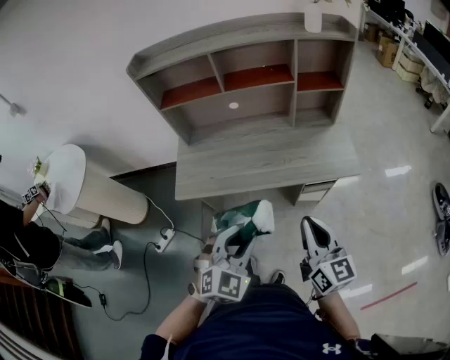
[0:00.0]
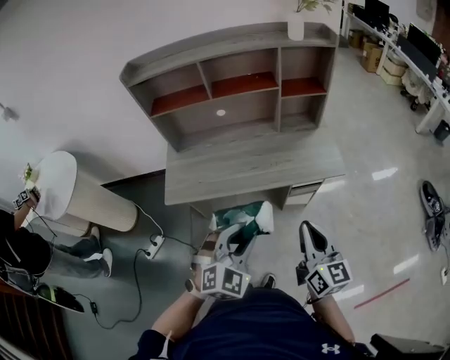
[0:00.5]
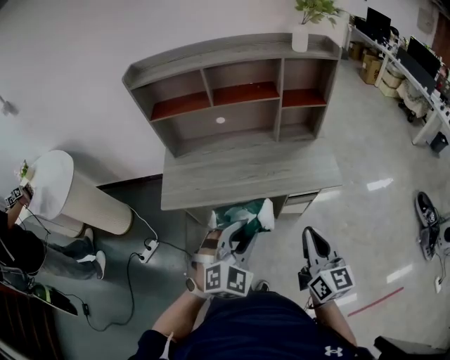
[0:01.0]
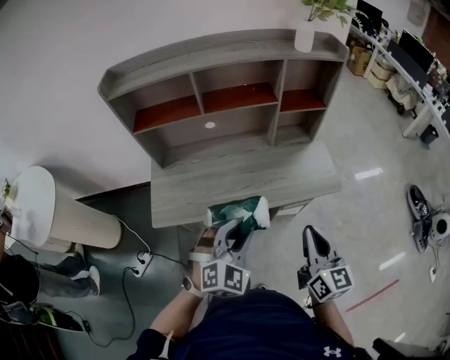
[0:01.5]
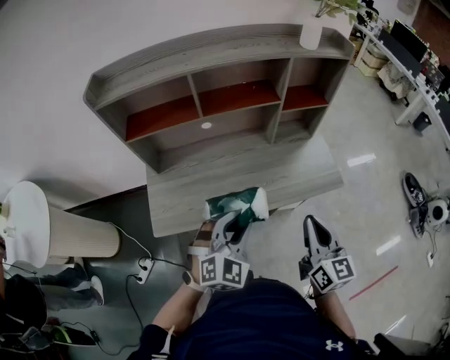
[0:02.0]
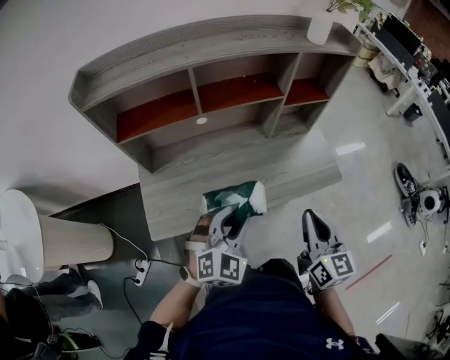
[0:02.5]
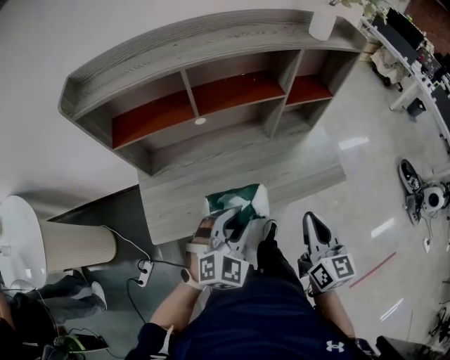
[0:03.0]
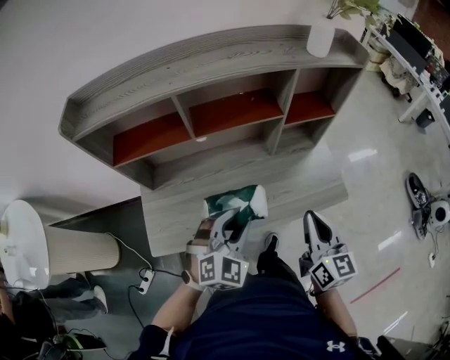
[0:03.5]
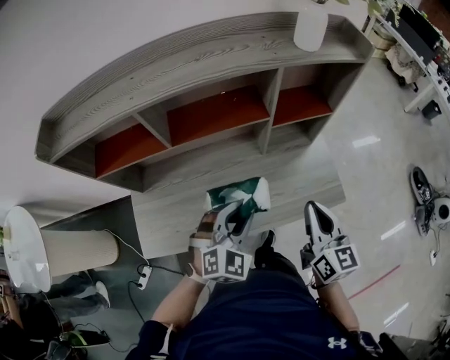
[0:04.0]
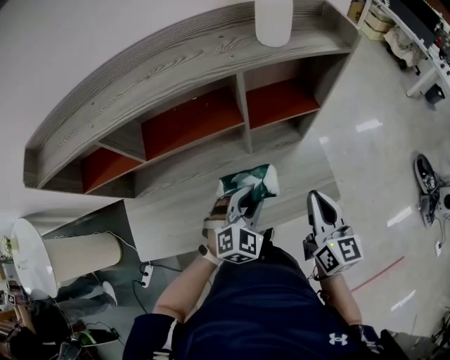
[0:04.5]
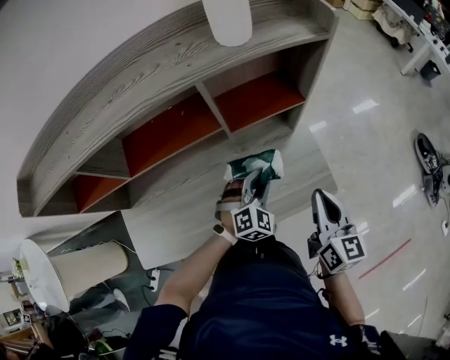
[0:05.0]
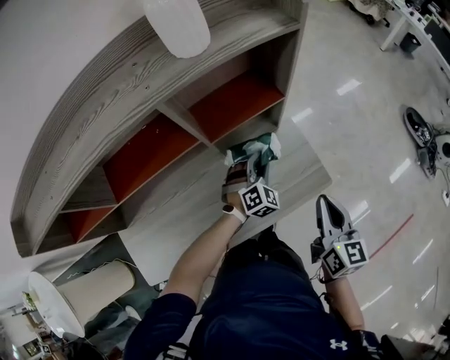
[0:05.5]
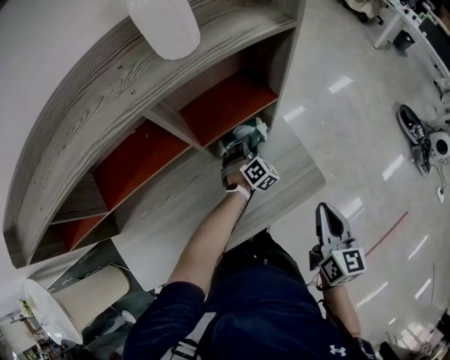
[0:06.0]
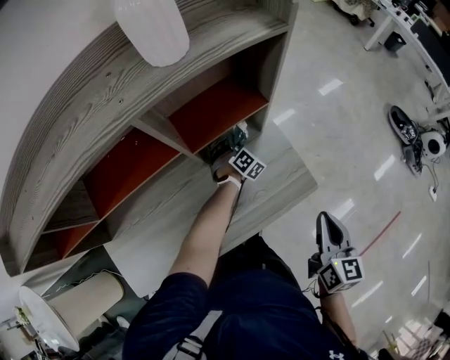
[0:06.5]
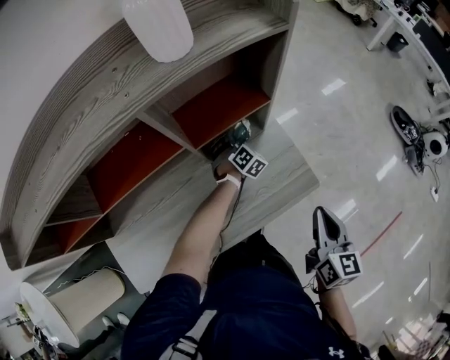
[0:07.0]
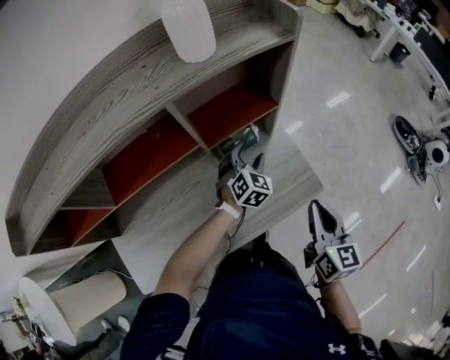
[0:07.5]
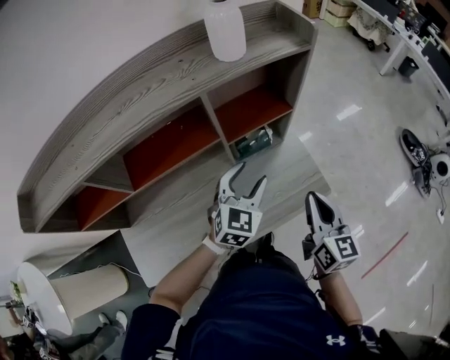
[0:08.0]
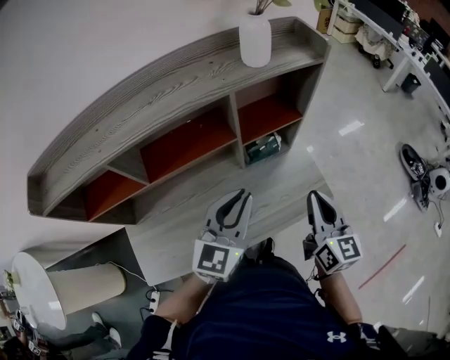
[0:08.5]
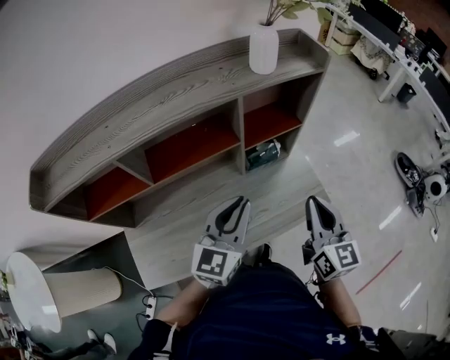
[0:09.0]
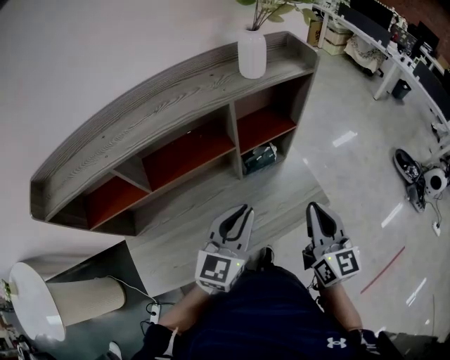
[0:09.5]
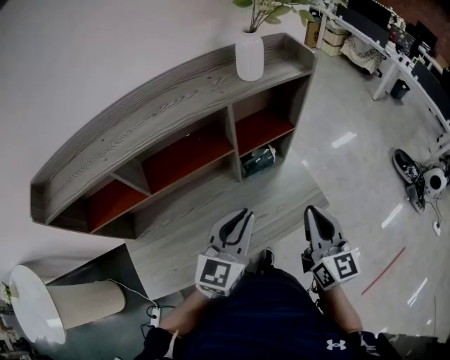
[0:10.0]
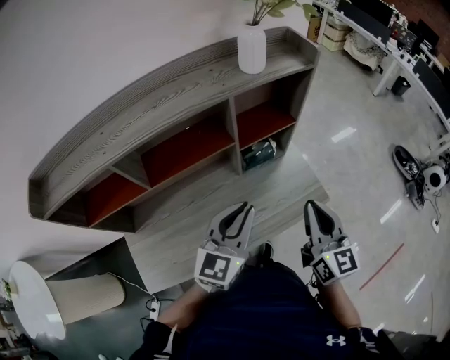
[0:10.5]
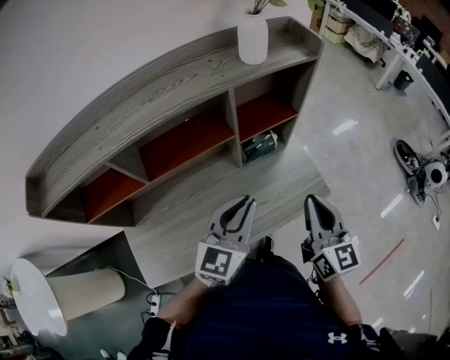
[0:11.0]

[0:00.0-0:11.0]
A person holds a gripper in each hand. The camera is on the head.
0:00.0 to 0:02.0: The two grippers go some 15 cm forward.
0:02.0 to 0:03.5: Both grippers travel together forward, approximately 10 cm.
0:03.5 to 0:05.5: The right gripper travels to the right and forward by some 25 cm, and swivels approximately 20 degrees, while the left gripper moves forward, to the right and downward, about 40 cm.
0:05.5 to 0:07.5: The left gripper goes downward and returns, roughly 10 cm each way, and opens.
0:07.5 to 0:09.0: The left gripper heads upward, backward and to the left, covering some 35 cm, angles its fingers upward, by some 30 degrees, and closes up; the right gripper travels upward and to the left by roughly 15 cm.
0:09.0 to 0:11.0: There are only small adjustments of the grippers.

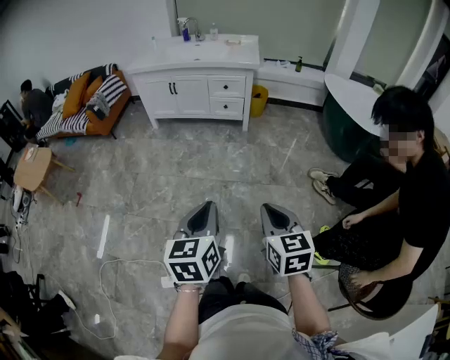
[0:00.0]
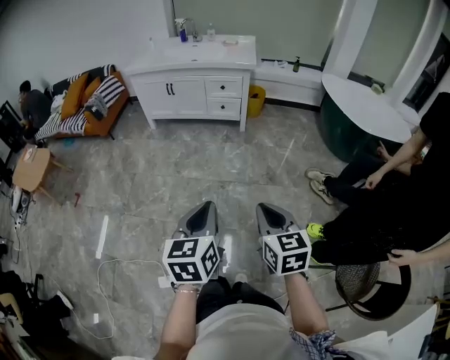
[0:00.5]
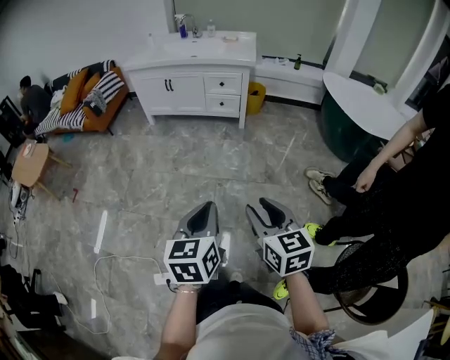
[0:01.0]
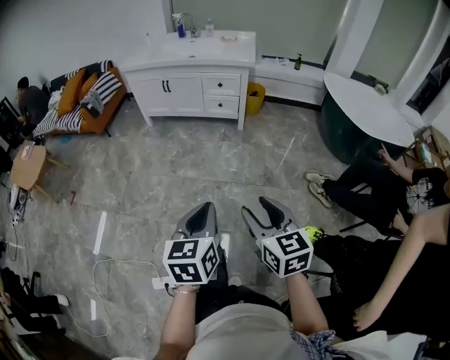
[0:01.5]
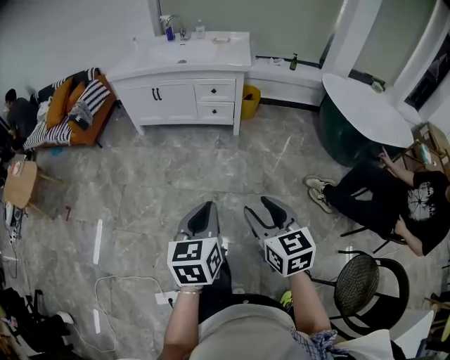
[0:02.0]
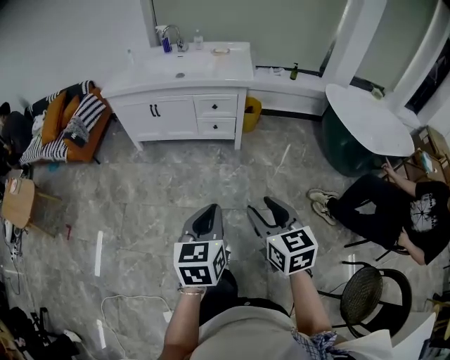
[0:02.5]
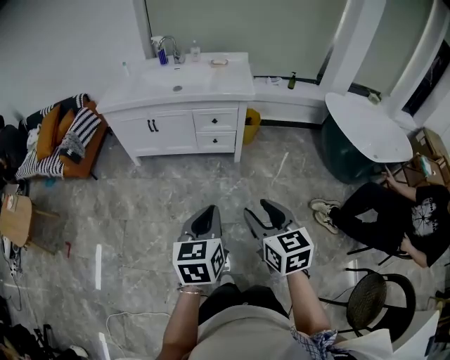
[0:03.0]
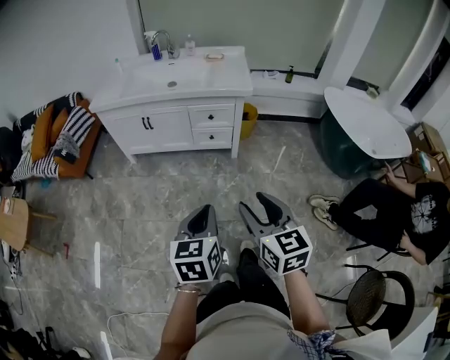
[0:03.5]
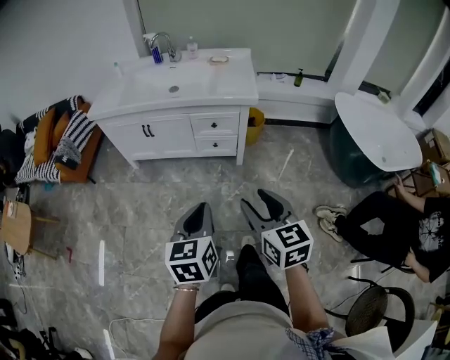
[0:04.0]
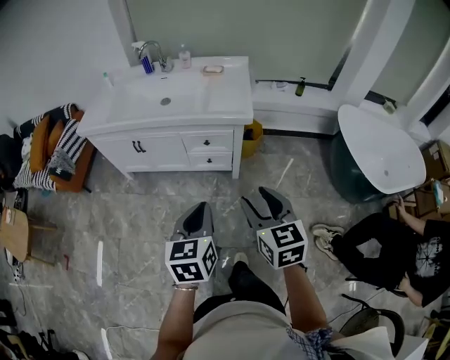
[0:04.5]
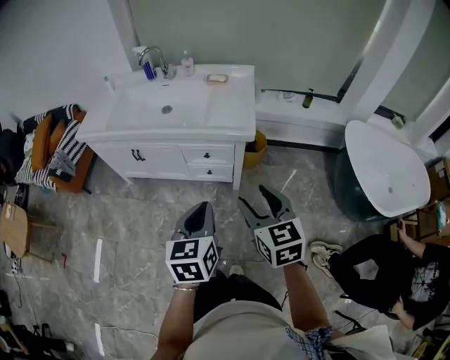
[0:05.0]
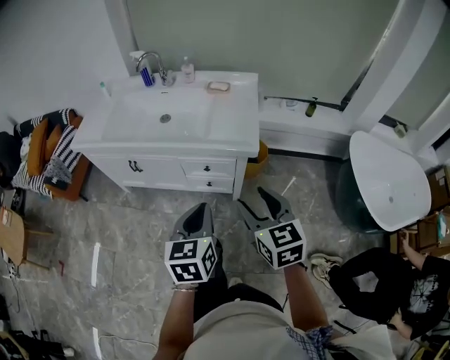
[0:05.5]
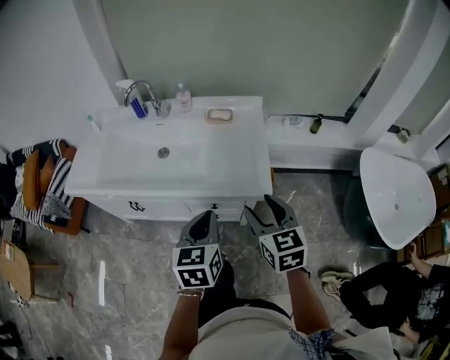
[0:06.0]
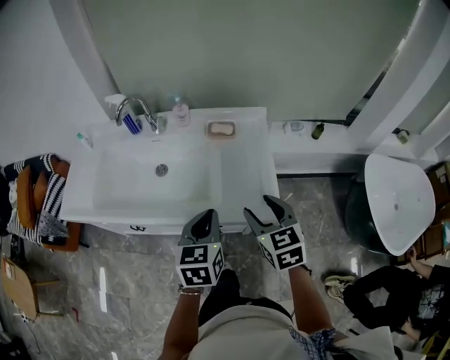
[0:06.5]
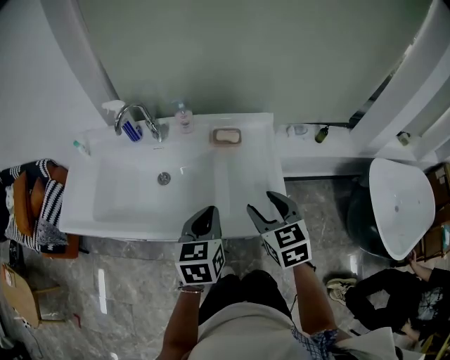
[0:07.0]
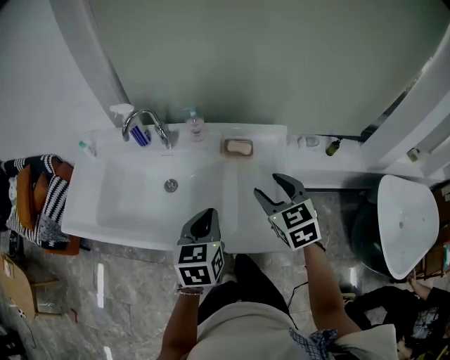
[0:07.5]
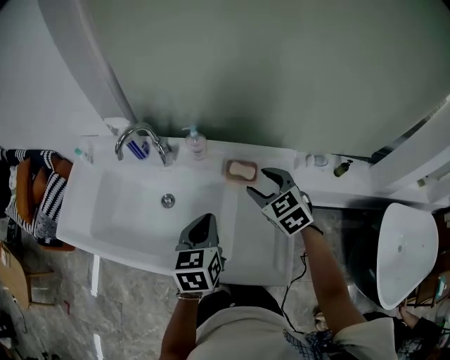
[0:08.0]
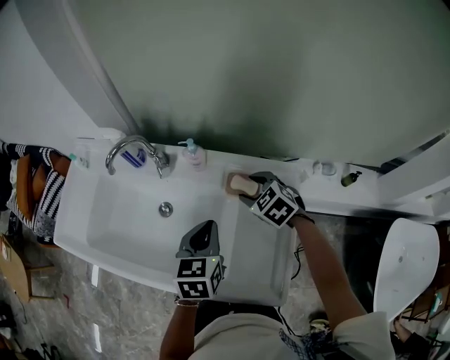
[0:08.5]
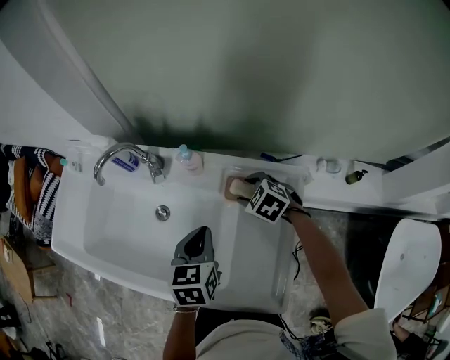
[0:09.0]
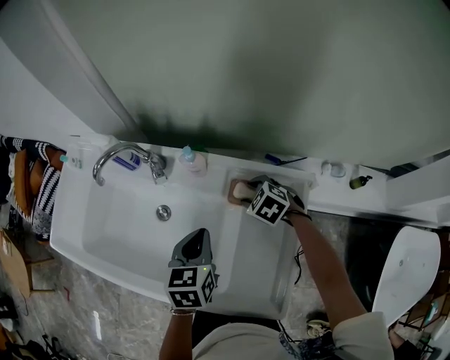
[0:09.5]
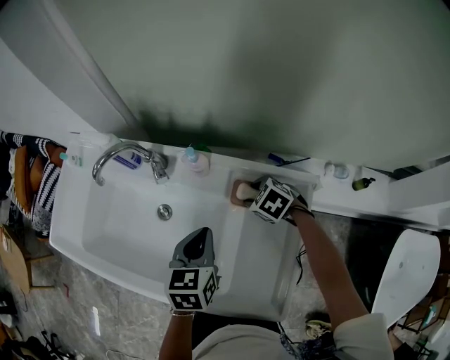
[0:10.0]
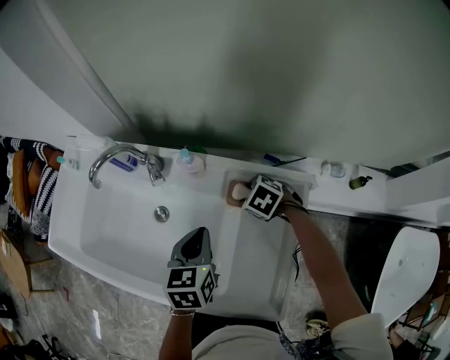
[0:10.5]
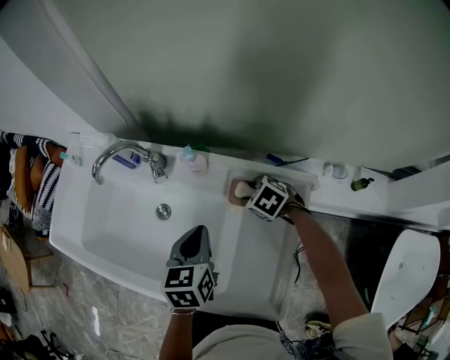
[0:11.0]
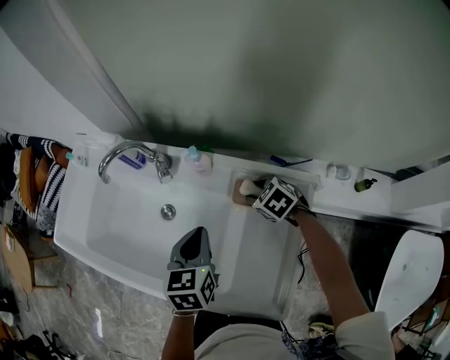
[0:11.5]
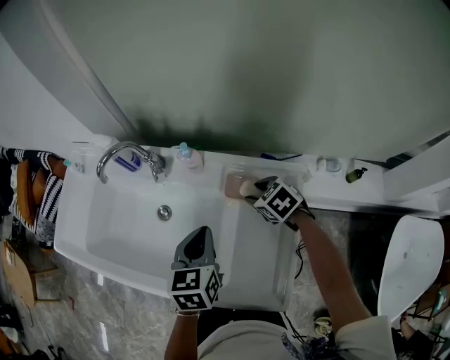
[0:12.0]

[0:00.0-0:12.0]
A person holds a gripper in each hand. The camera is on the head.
0:00.0 to 0:02.0: The grippers both shift forward by approximately 15 cm. The right gripper opens up.
0:02.0 to 0:04.0: Both grippers travel together forward, some 30 cm.
0:04.0 to 0:06.0: Both grippers are carried forward, roughly 50 cm.
0:06.0 to 0:08.0: The grippers both shift forward by roughly 35 cm. The right gripper turns by about 30 degrees.
0:08.0 to 0:10.0: The left gripper travels forward and downward by some 10 cm. Meanwhile the right gripper shifts about 20 cm downward and forward, and rotates approximately 40 degrees.
0:10.0 to 0:12.0: The right gripper moves some 5 cm.

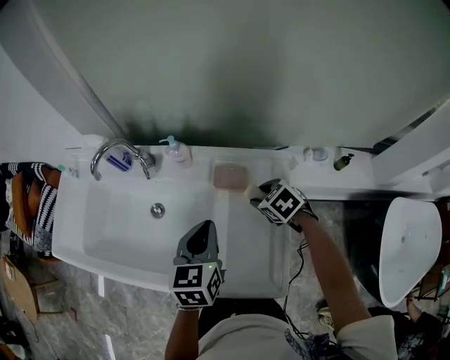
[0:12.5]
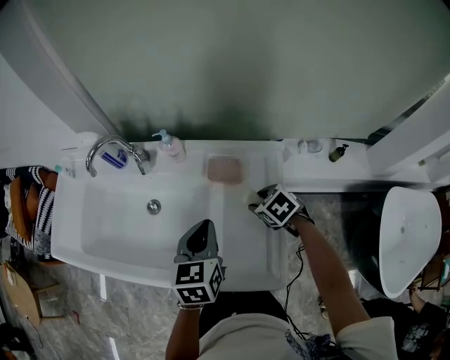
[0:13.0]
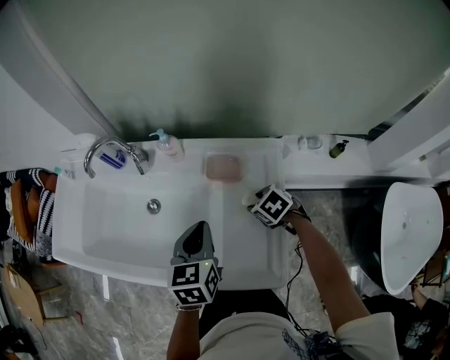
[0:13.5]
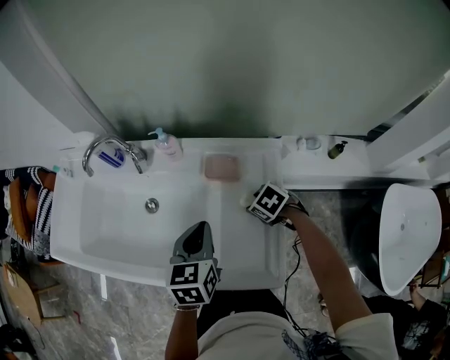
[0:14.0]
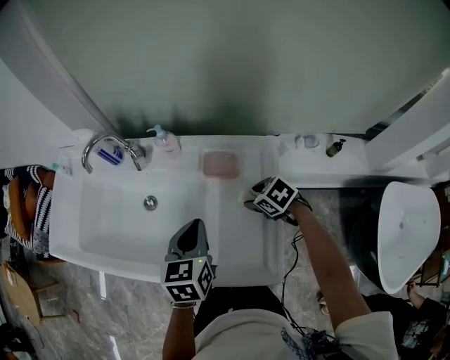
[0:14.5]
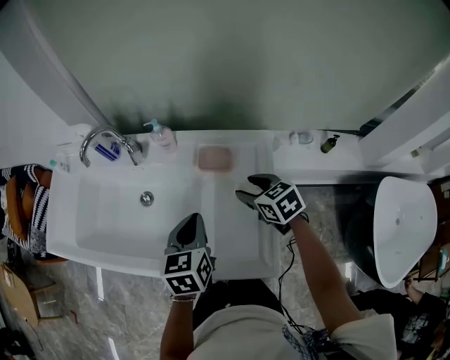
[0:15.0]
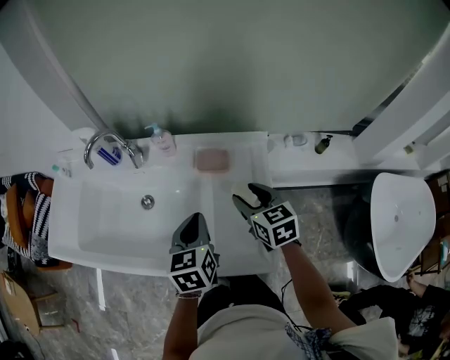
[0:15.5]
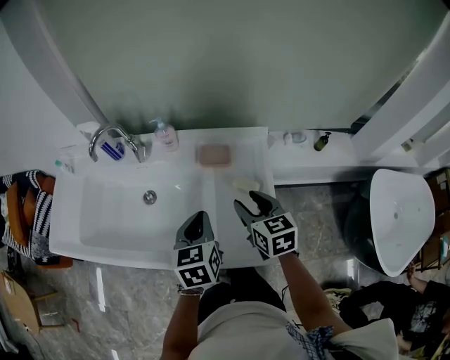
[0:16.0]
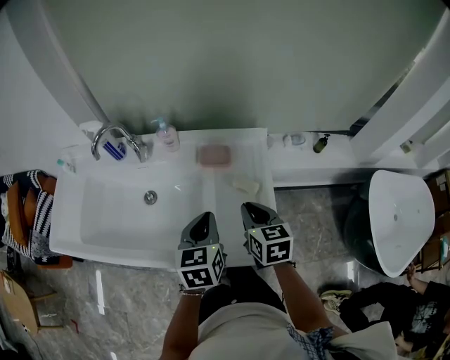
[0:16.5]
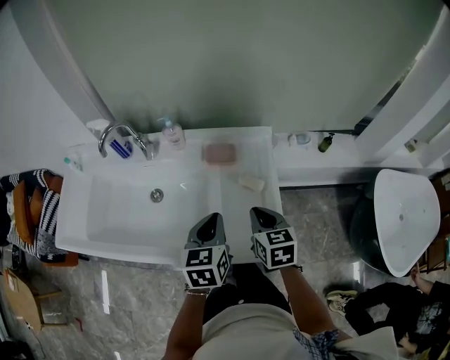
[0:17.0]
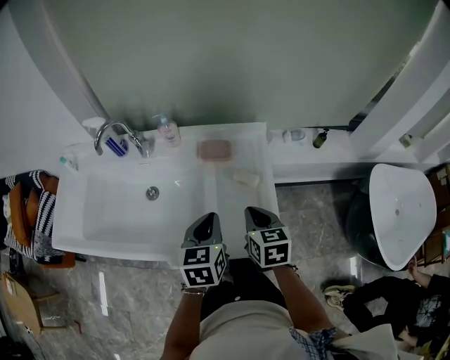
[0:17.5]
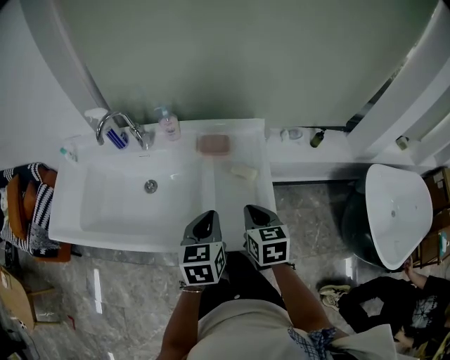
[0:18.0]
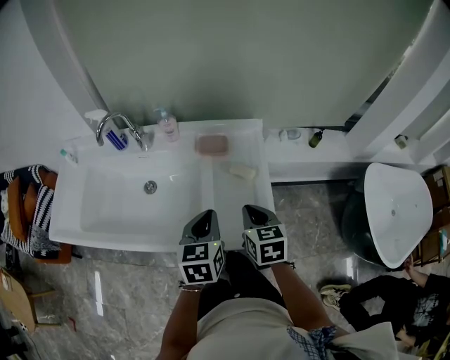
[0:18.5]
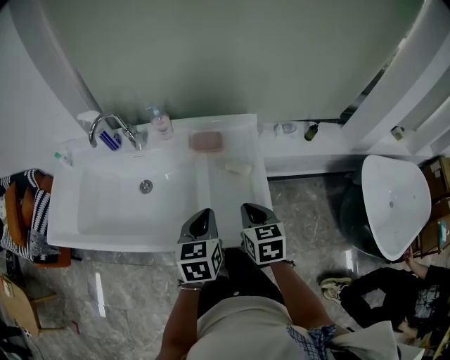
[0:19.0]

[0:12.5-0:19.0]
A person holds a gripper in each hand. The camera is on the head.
0:12.5 to 0:14.5: The right gripper moves about 5 cm.
0:14.5 to 0:17.0: The left gripper changes place by roughly 10 cm. The right gripper changes place by approximately 15 cm, rotates approximately 50 degrees, and closes.
0:17.0 to 0:19.0: The grippers stay close to where they were, moving slightly.
